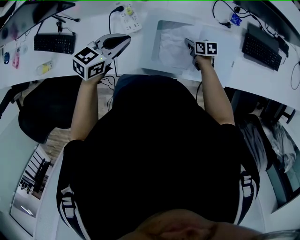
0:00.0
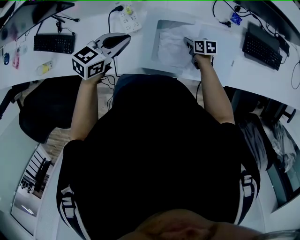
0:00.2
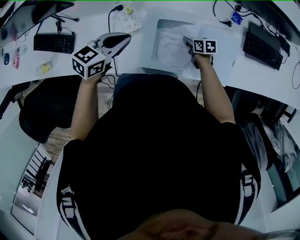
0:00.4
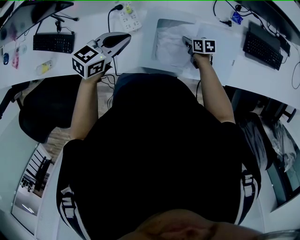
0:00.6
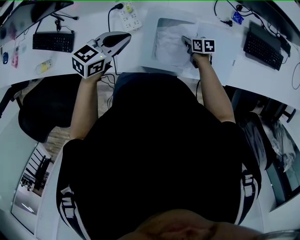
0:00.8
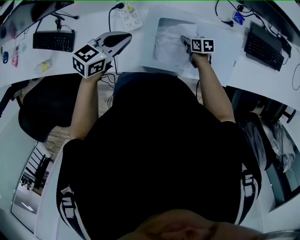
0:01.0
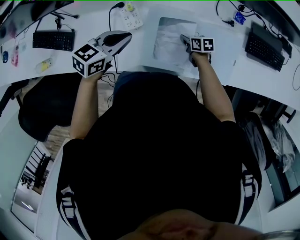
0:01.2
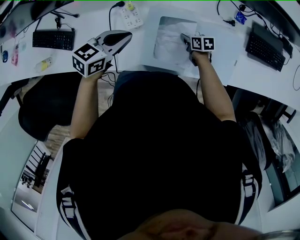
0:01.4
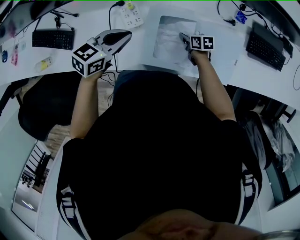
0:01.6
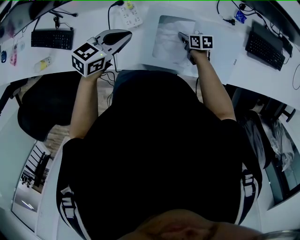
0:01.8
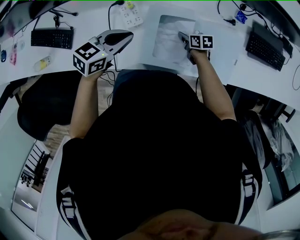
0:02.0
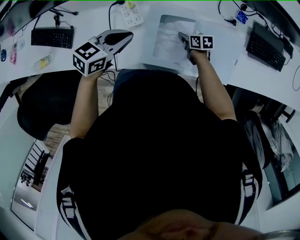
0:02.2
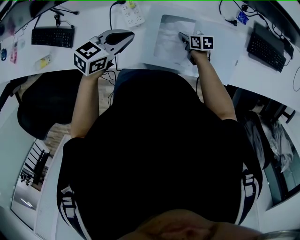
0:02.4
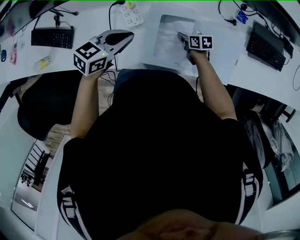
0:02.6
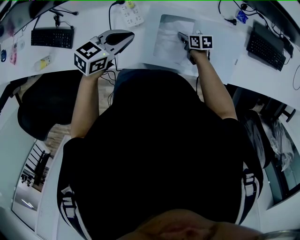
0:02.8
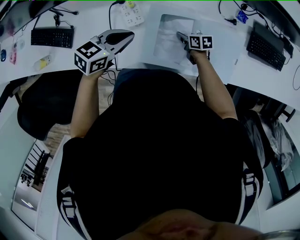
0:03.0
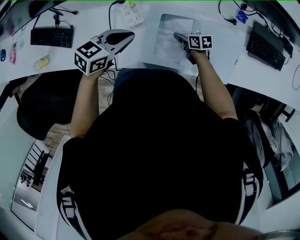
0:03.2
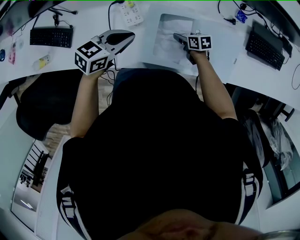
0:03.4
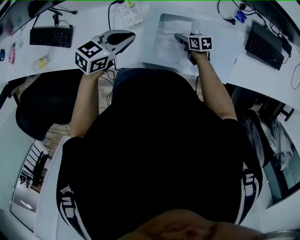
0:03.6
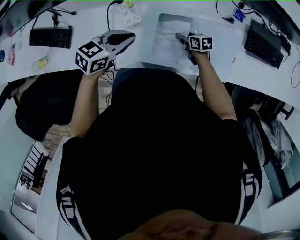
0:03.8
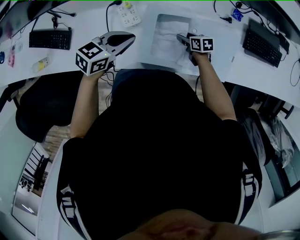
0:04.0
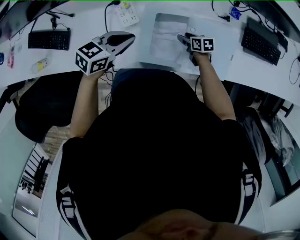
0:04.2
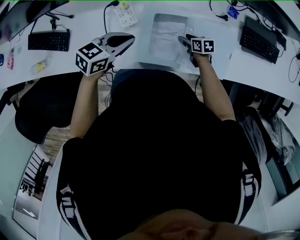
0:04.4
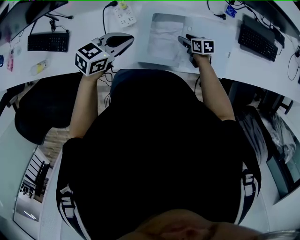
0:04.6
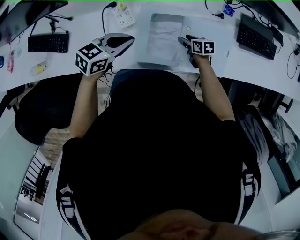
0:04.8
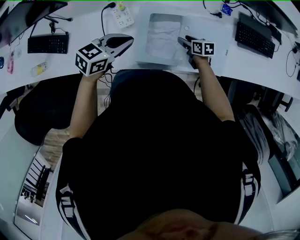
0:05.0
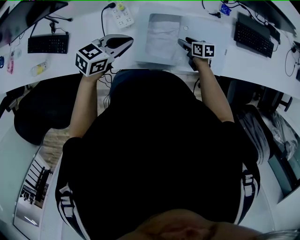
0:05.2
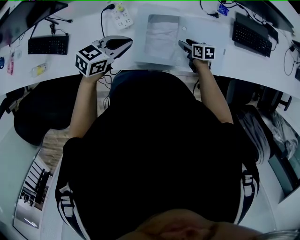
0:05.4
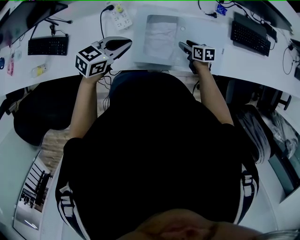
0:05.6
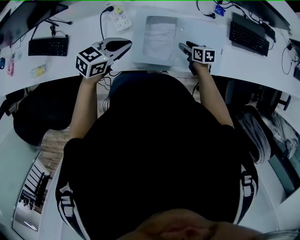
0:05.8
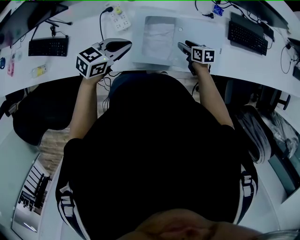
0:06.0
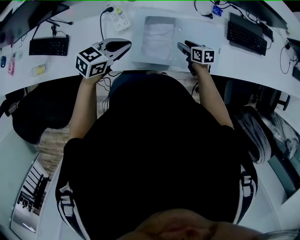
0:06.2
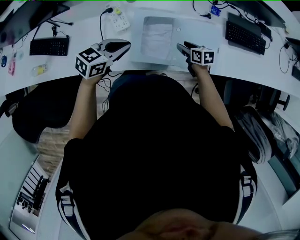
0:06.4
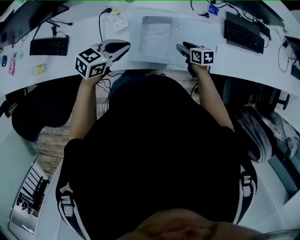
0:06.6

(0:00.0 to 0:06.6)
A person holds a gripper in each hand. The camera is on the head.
0:00.0 - 0:01.6: The grippers move only a little.
0:01.6 - 0:03.2: The right gripper opens.
0:03.2 - 0:05.0: The right gripper shifts by roughly 10 cm, and opens its fingers.
0:05.0 - 0:06.6: The left gripper ends up about 5 cm from where it was, while the right gripper shifts approximately 10 cm upward.

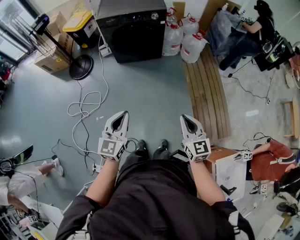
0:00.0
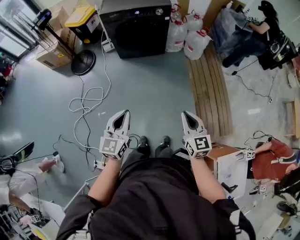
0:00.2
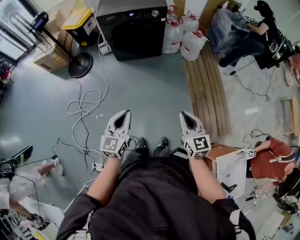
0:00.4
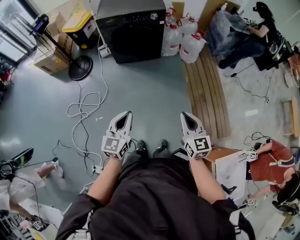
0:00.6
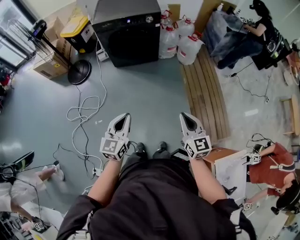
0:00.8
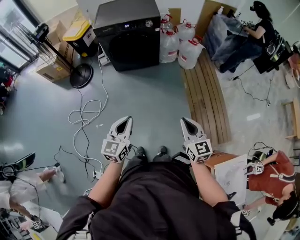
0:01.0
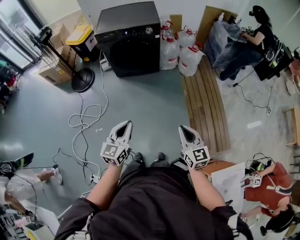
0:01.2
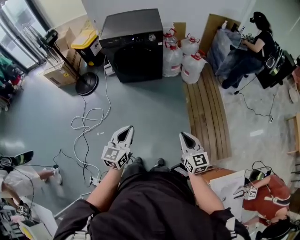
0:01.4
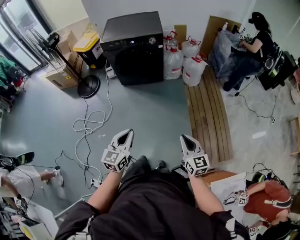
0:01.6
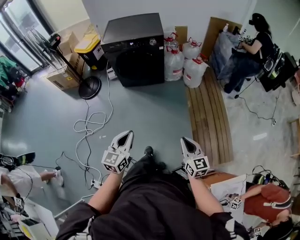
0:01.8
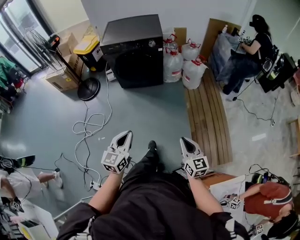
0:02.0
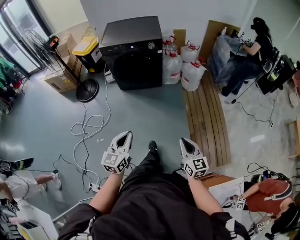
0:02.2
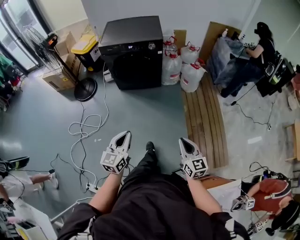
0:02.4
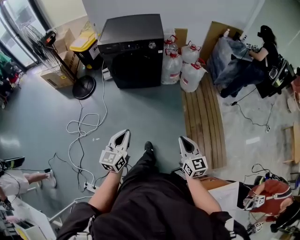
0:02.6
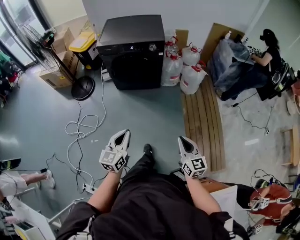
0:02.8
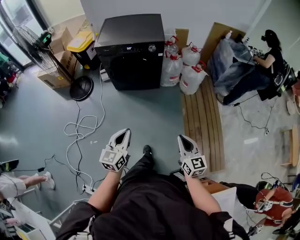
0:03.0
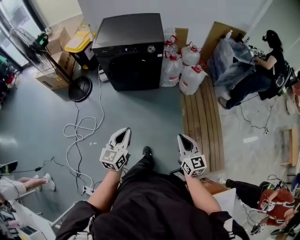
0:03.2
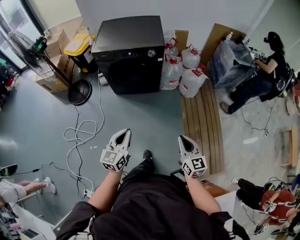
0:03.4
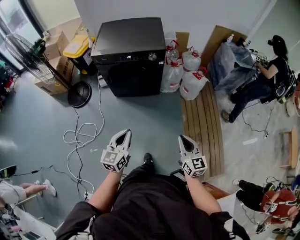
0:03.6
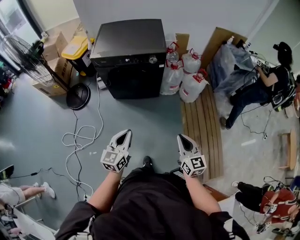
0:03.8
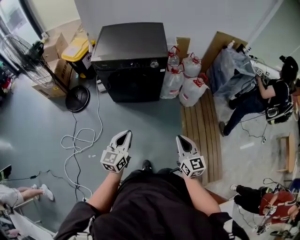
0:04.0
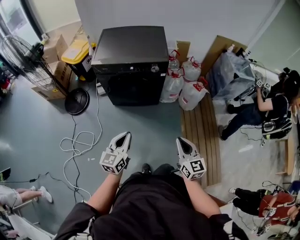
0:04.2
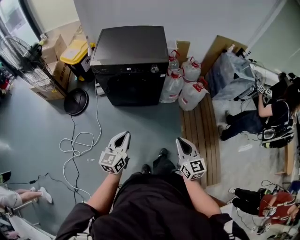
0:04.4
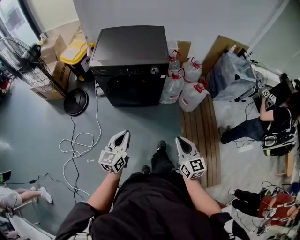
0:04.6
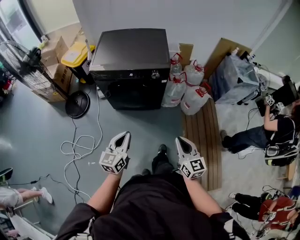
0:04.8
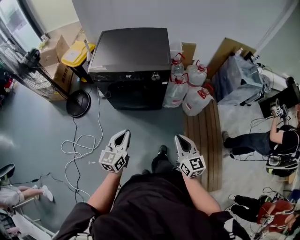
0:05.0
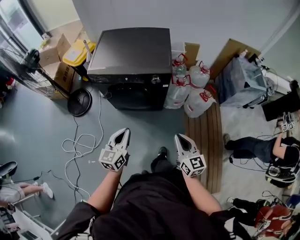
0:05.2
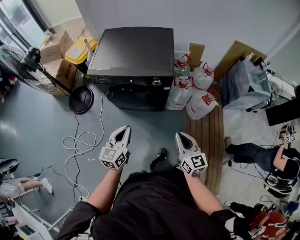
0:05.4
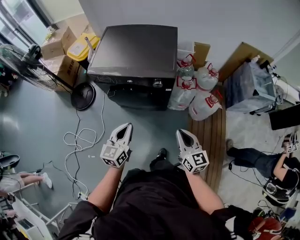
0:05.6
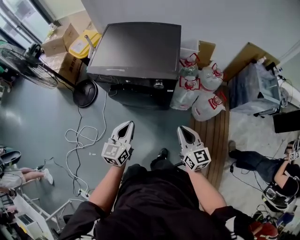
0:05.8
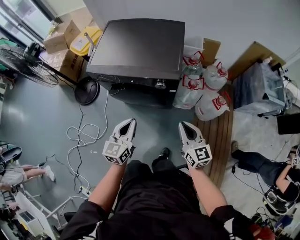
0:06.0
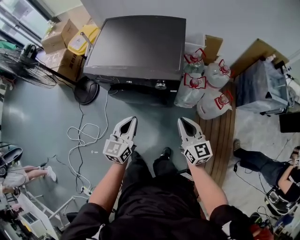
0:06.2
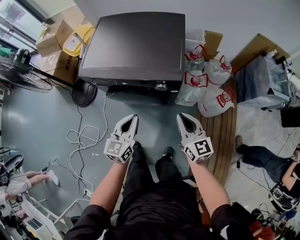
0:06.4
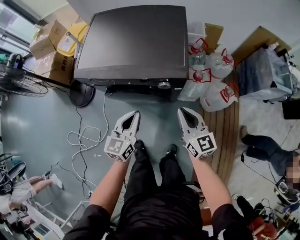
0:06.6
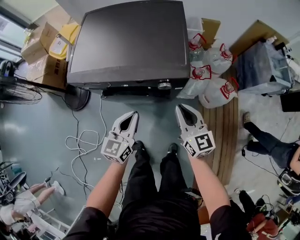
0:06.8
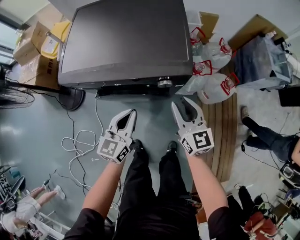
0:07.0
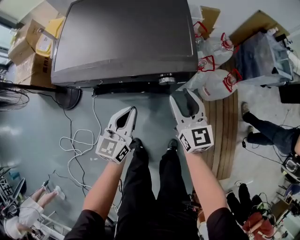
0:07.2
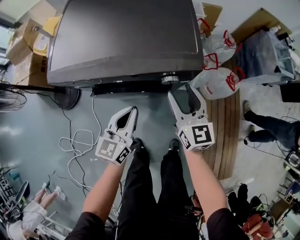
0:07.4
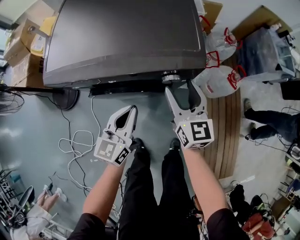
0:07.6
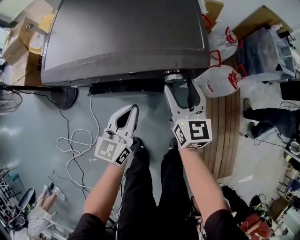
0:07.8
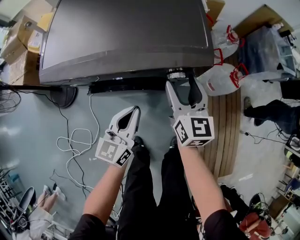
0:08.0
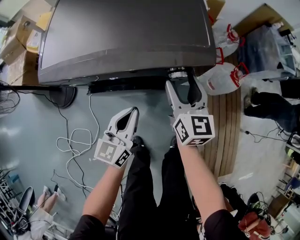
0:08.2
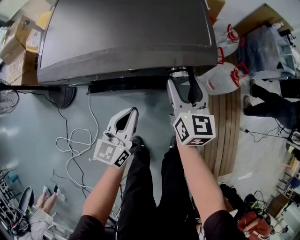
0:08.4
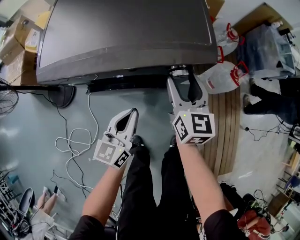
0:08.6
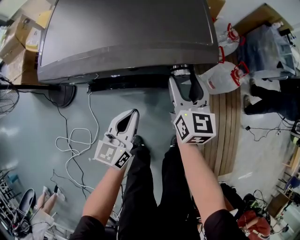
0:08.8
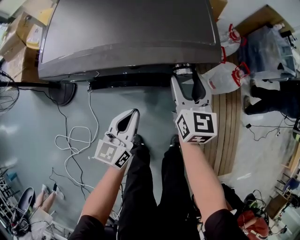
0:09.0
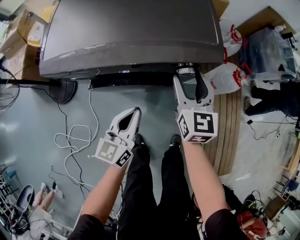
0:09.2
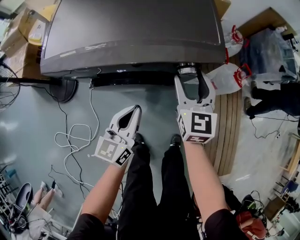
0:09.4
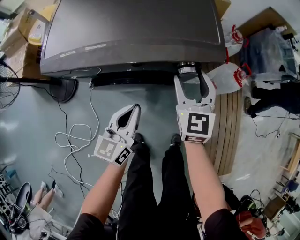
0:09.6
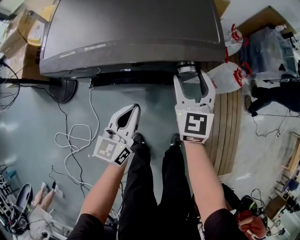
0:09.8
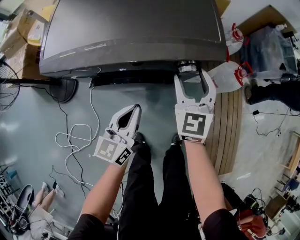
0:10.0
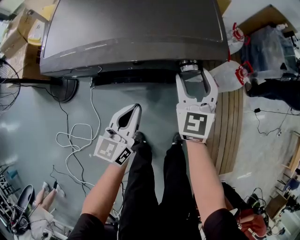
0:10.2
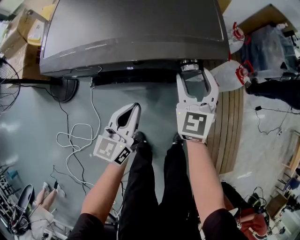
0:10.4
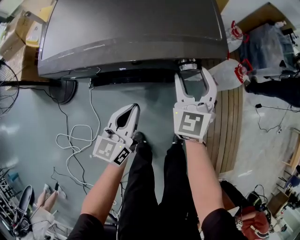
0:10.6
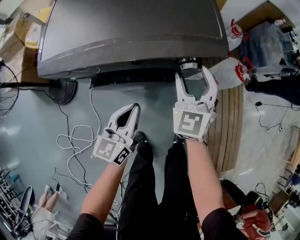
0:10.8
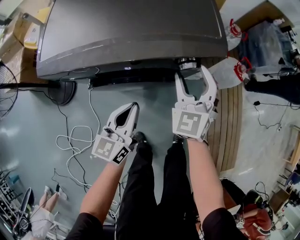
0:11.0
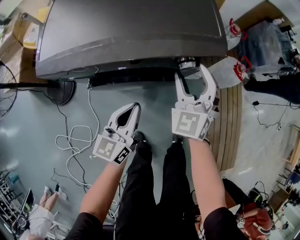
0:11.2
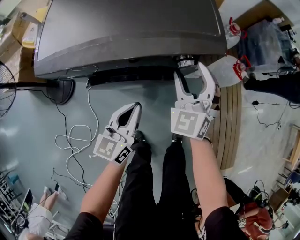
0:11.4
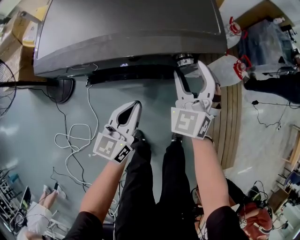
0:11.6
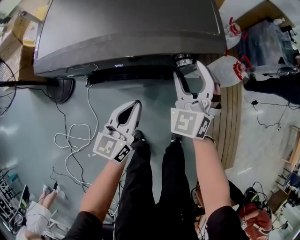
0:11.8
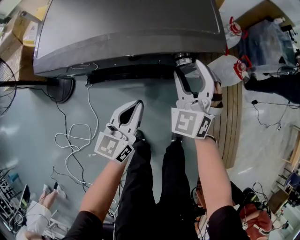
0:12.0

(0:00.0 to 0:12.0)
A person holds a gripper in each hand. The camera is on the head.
0:00.0 - 0:01.6: The grippers both shift to the right by roughly 10 cm.
0:01.6 - 0:03.0: The two grippers go roughly 15 cm forward.
0:03.0 - 0:04.4: Both grippers travel together forward, approximately 20 cm.
0:04.4 - 0:06.0: Both grippers travel together forward, approximately 30 cm.
0:06.0 - 0:07.6: The left gripper travels downward and forward by some 20 cm; the right gripper is displaced forward, downward and to the left by approximately 25 cm, and opens.
0:07.6 - 0:09.0: The left gripper moves approximately 5 cm.
0:09.0 - 0:10.4: The right gripper rotates some 30 degrees.
0:10.4 - 0:12.0: The right gripper rotates roughly 30 degrees.

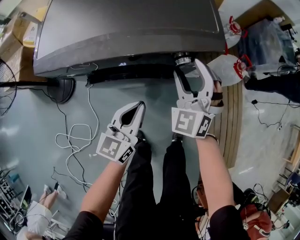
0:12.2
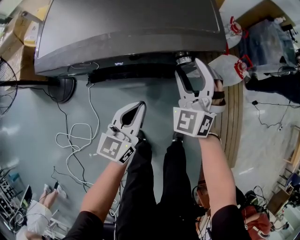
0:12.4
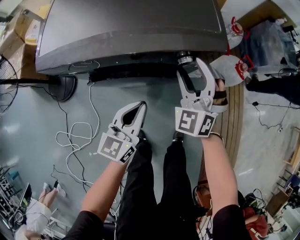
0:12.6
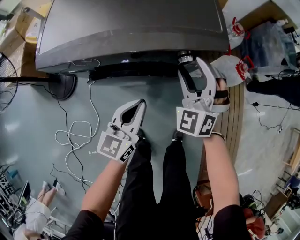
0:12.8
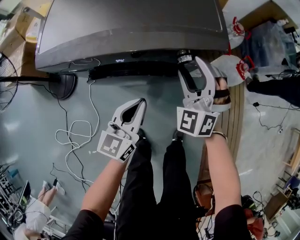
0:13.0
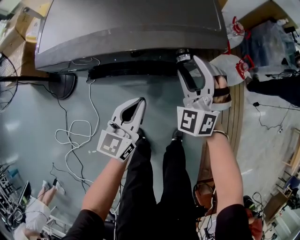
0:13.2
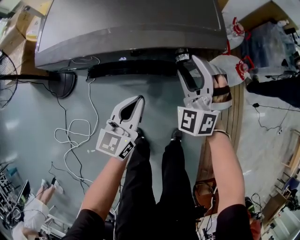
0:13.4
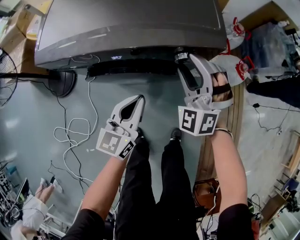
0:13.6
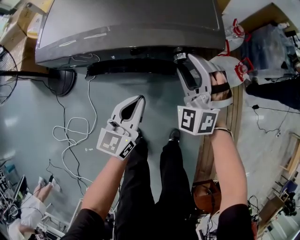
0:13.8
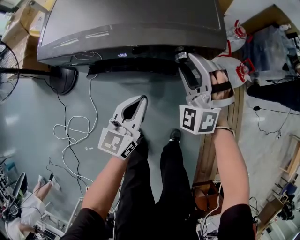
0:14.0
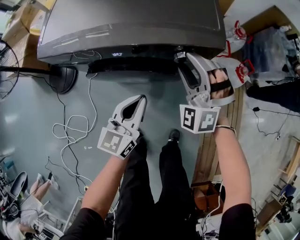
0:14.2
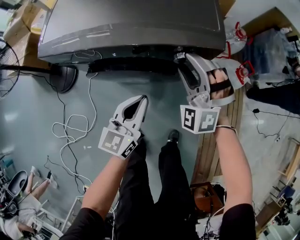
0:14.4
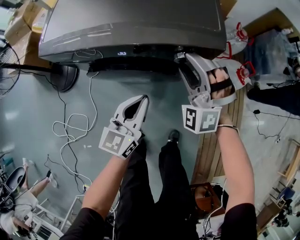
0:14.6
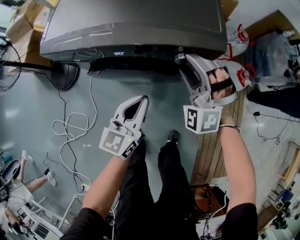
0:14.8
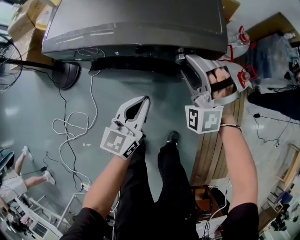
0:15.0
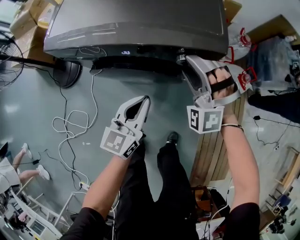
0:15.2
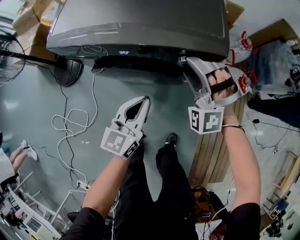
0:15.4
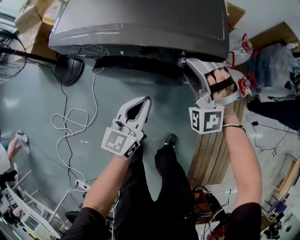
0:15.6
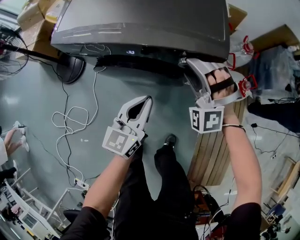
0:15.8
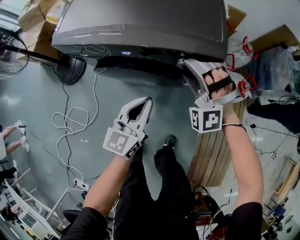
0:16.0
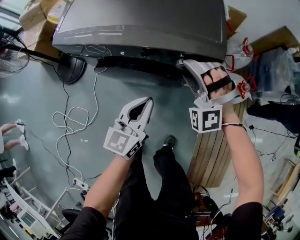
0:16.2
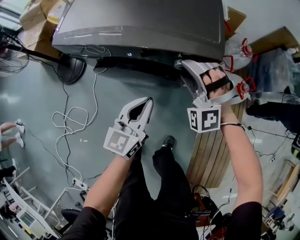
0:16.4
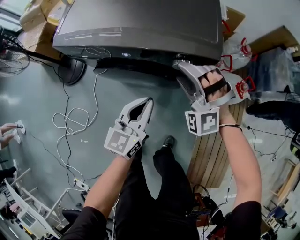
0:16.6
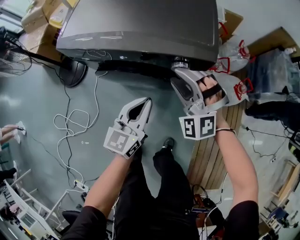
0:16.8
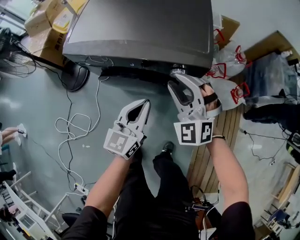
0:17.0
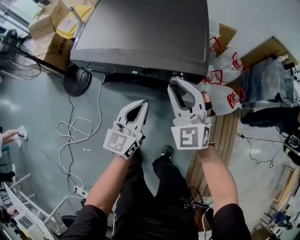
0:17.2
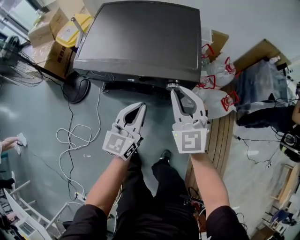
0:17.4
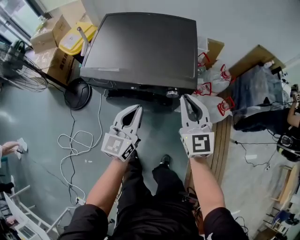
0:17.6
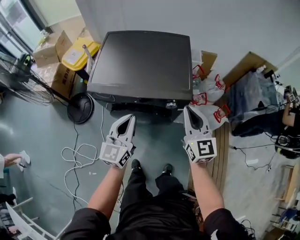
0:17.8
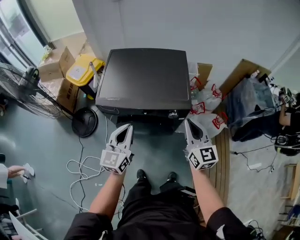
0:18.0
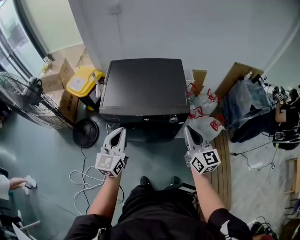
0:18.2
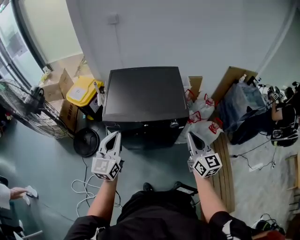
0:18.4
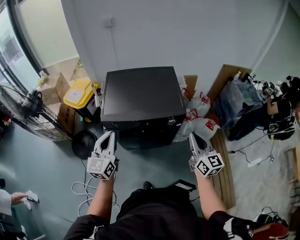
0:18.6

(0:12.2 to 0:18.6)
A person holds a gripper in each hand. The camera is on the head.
0:12.2 - 0:13.8: The right gripper swivels approximately 20 degrees.
0:13.8 - 0:15.4: The right gripper rotates about 20 degrees.
0:15.4 - 0:17.0: The two grippers go about 5 cm upward. The right gripper rotates about 30 degrees.
0:17.0 - 0:18.6: The right gripper shifts about 30 cm upward and backward, rolls clockwise, seen from behind, by roughly 60 degrees, and closes up. Meanwhile the left gripper is displaced upward and to the left by roughly 40 cm.
